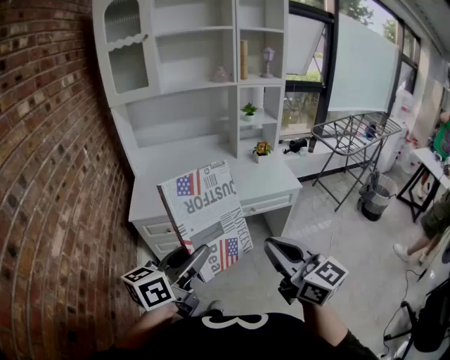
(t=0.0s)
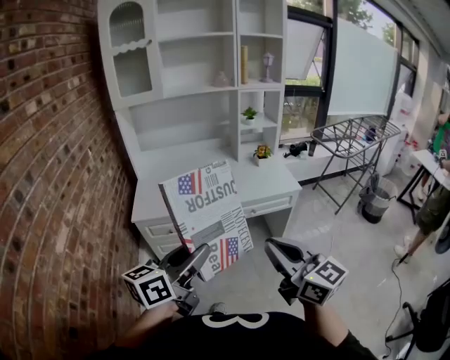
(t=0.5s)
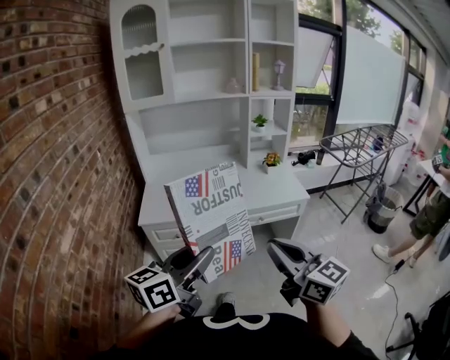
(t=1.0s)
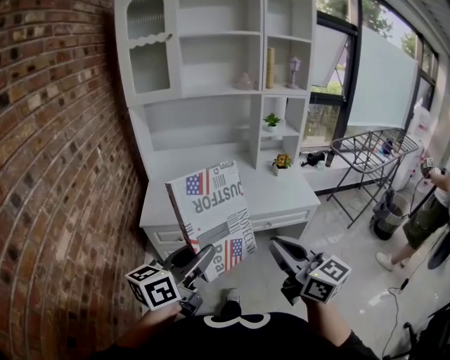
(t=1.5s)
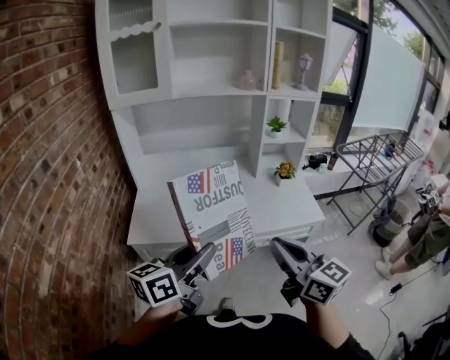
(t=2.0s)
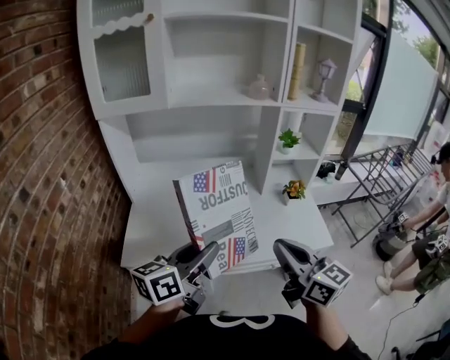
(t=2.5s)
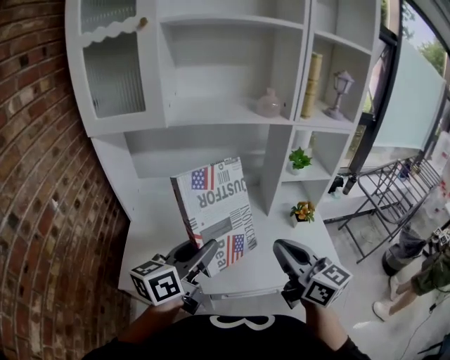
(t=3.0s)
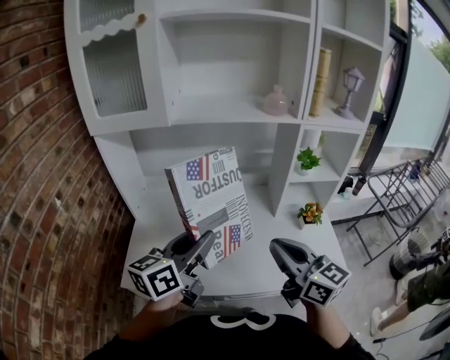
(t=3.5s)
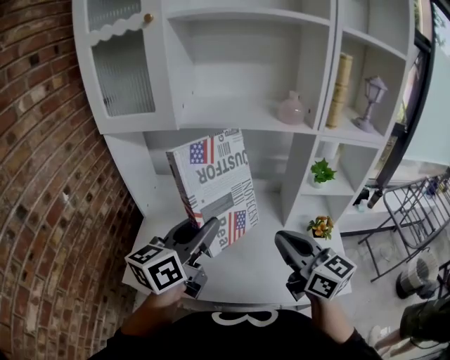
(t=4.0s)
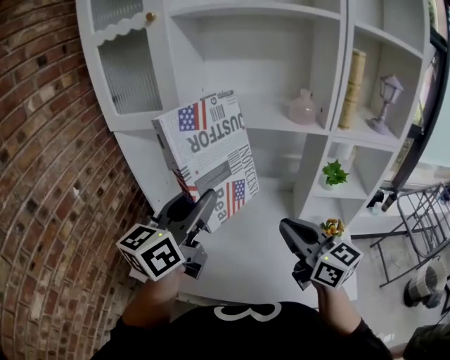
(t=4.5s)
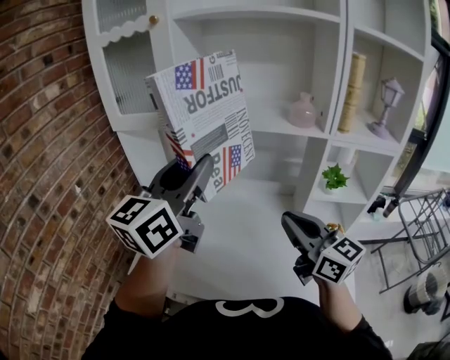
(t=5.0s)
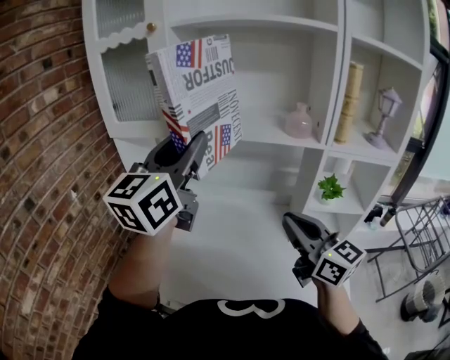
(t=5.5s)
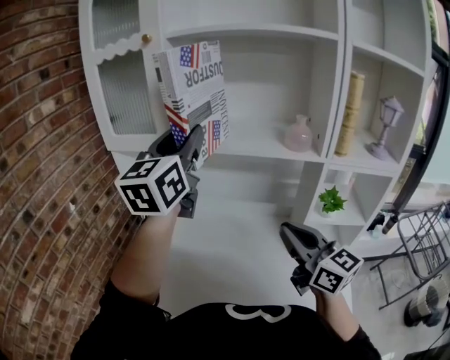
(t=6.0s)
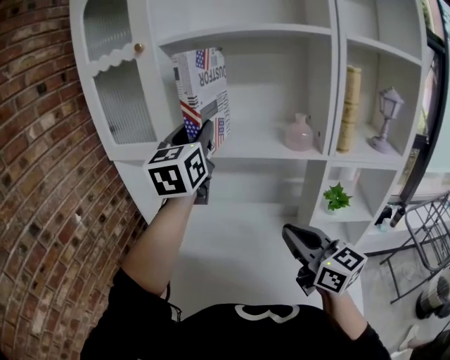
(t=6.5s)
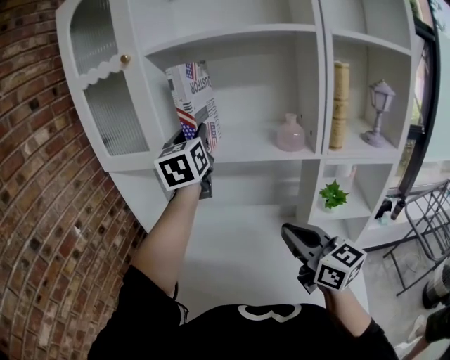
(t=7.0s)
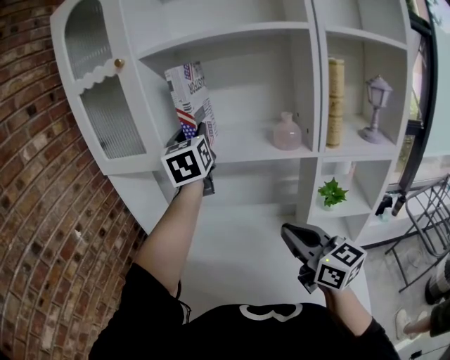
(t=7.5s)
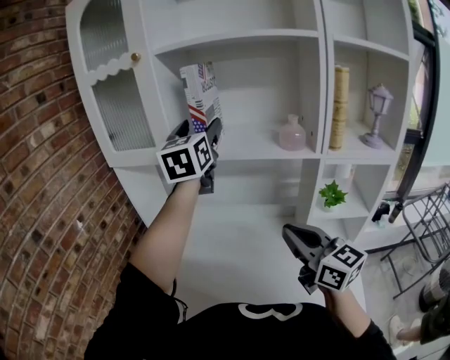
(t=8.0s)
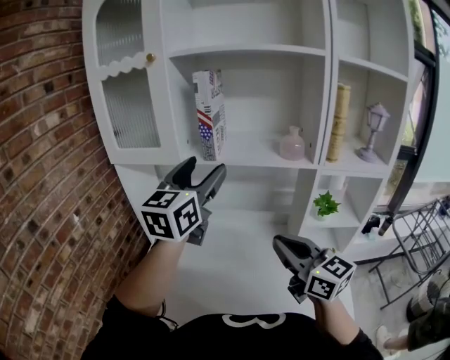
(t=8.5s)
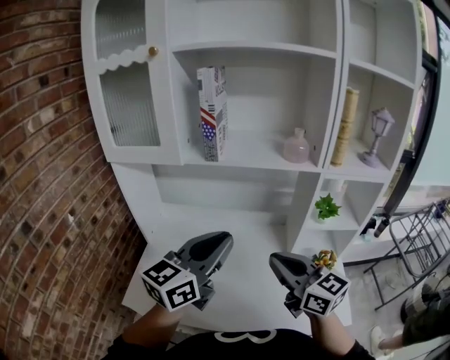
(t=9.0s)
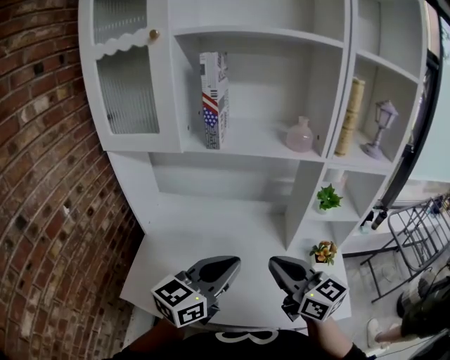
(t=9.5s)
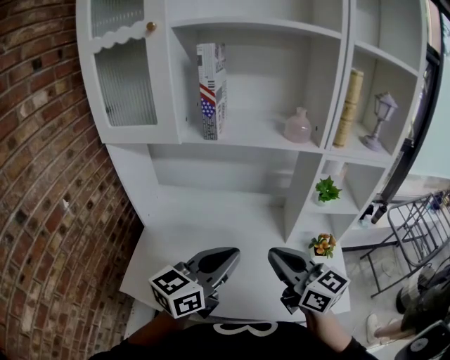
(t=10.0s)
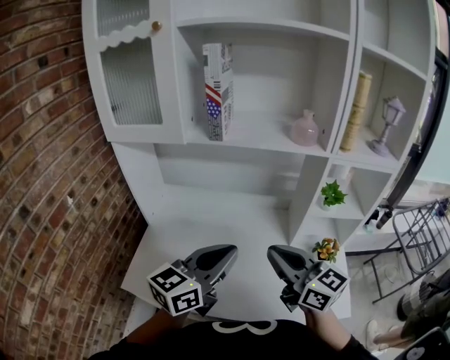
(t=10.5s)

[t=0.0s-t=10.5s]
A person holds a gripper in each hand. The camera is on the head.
t=0.0s to t=2.0s: Both grippers move forward, some 20 cm.
t=2.0s to t=4.0s: Both grippers move forward, roughly 35 cm.
t=4.0s to t=6.5s: The left gripper moves upward and forward, about 30 cm, and turns by some 40 degrees. Meanwhile the right gripper travels forward by roughly 10 cm.
t=6.5s to t=8.5s: The left gripper goes about 10 cm backward, and opens.
t=8.5s to t=10.5s: The right gripper shifts by some 5 cm. The left gripper goes about 20 cm downward and backward, swivels about 30 degrees, and closes its fingers.

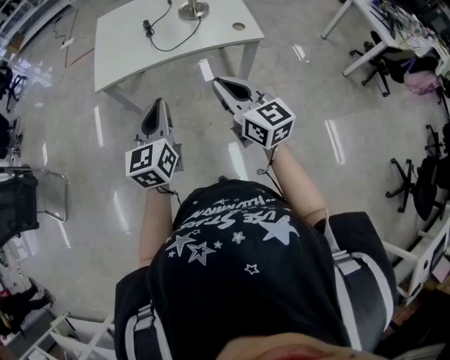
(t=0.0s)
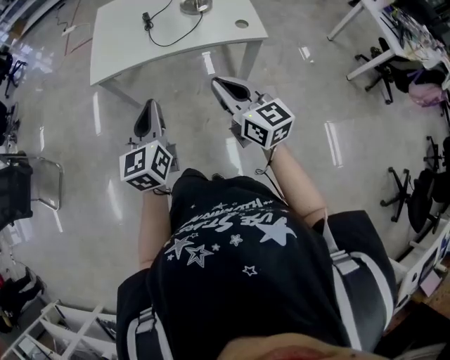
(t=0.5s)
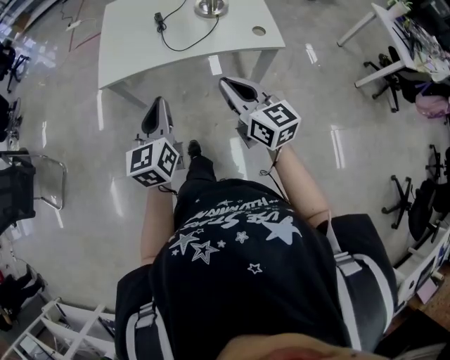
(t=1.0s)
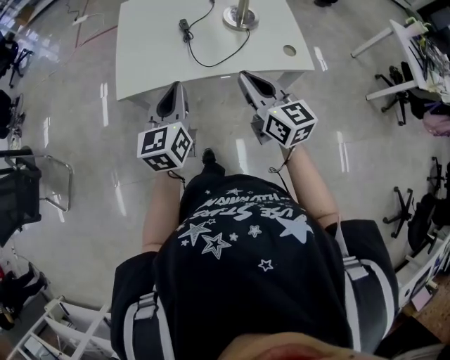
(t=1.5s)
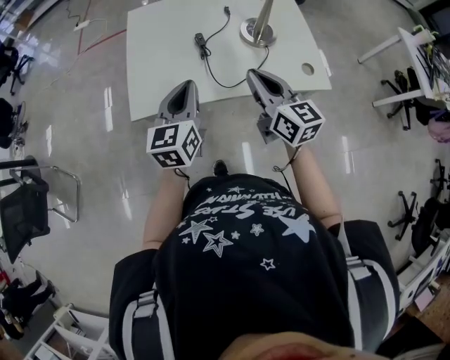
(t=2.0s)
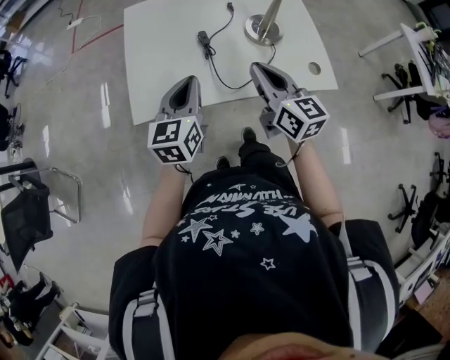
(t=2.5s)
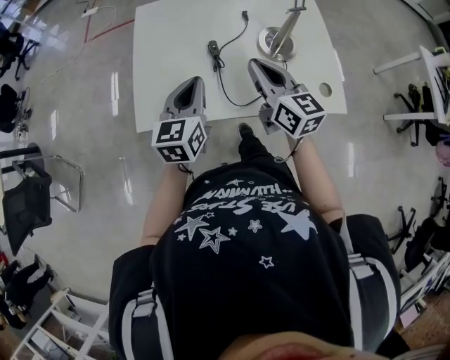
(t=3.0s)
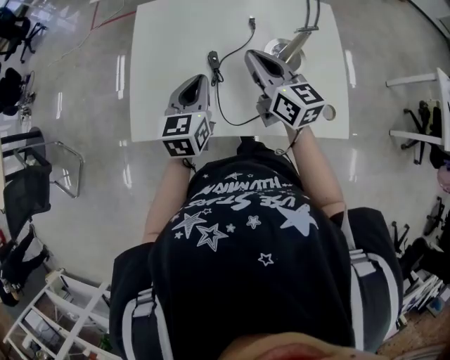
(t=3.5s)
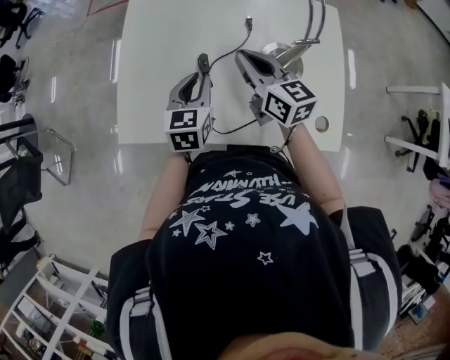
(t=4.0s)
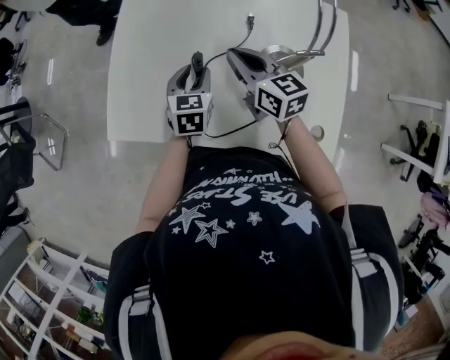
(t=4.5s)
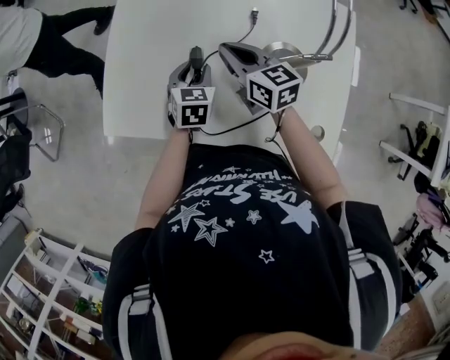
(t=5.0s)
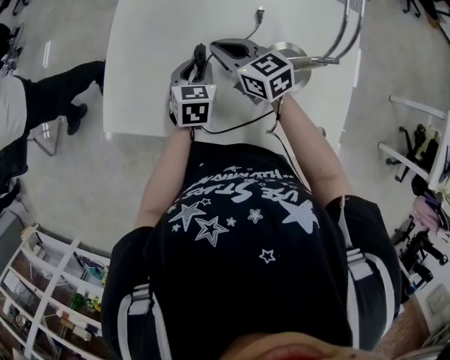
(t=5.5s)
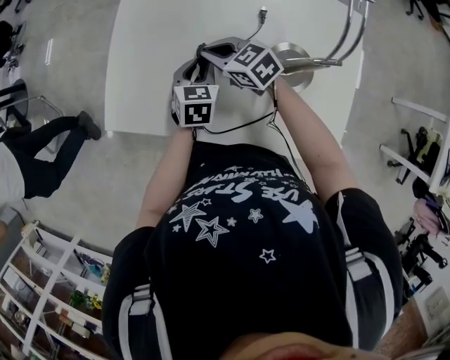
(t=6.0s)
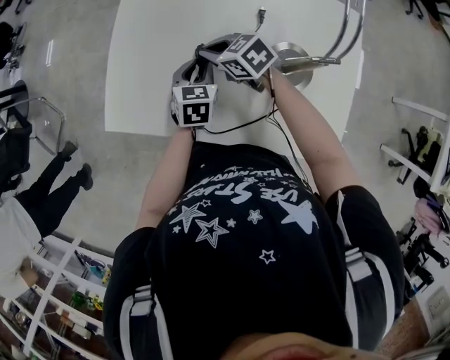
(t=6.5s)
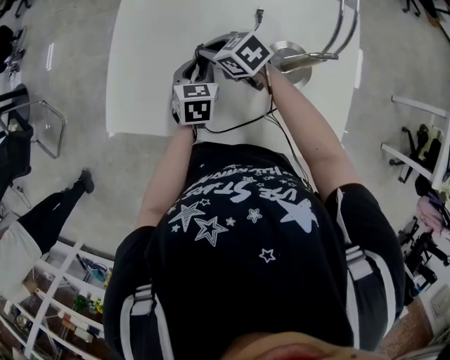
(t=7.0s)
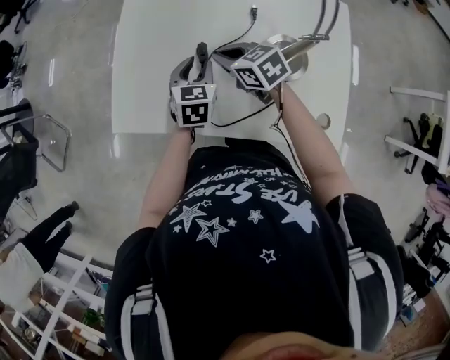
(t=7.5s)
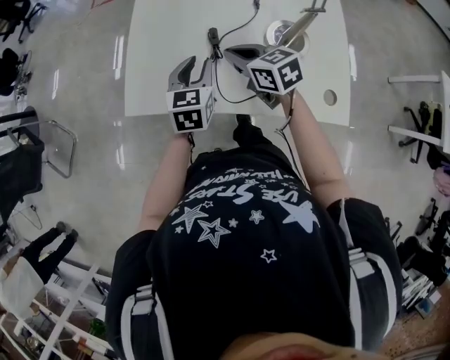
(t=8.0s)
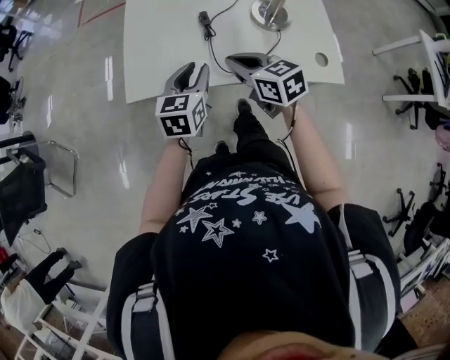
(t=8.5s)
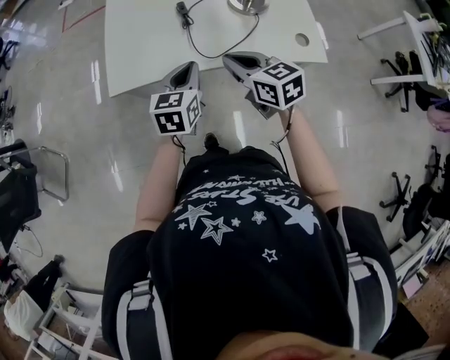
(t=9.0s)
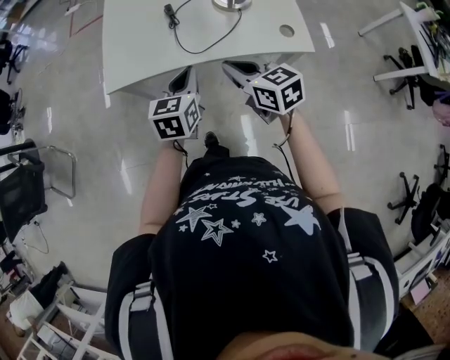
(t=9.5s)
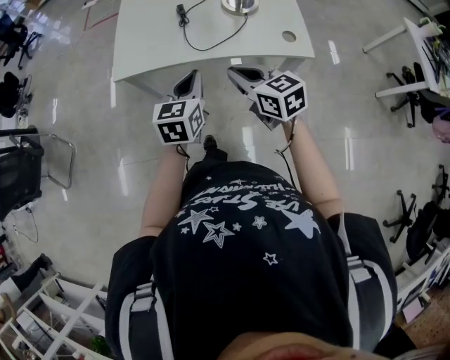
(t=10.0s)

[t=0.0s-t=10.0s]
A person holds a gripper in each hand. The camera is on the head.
t=0.0s to t=2.0s: The two grippers go approximately 30 cm forward.
t=2.0s to t=4.0s: The right gripper heads forward, covering about 25 cm. The left gripper moves forward, downward and to the right, approximately 25 cm, and turns by about 20 degrees.
t=4.0s to t=6.0s: The left gripper goes some 10 cm downward. Meanwhile the right gripper heads downward, to the left and forward, covering approximately 15 cm, and rotates roughly 40 degrees.
t=6.0s to t=8.0s: The left gripper travels upward, to the left and backward by approximately 15 cm, while the right gripper goes about 10 cm backward and upward, and swivels approximately 20 degrees.
t=8.0s to t=10.0s: The grippers both shift backward by approximately 30 cm. The left gripper closes.

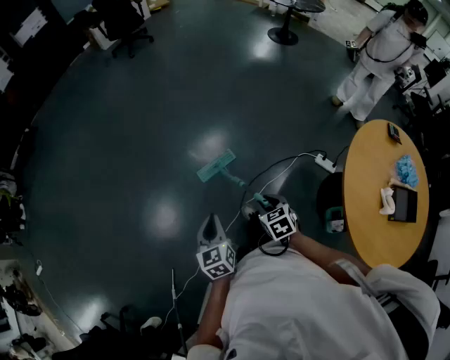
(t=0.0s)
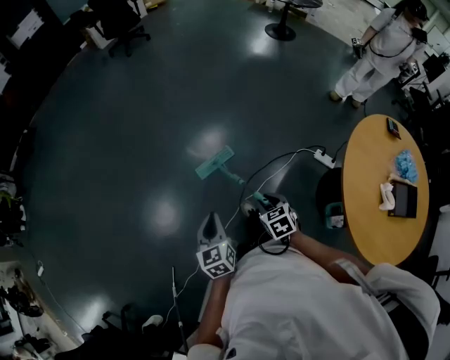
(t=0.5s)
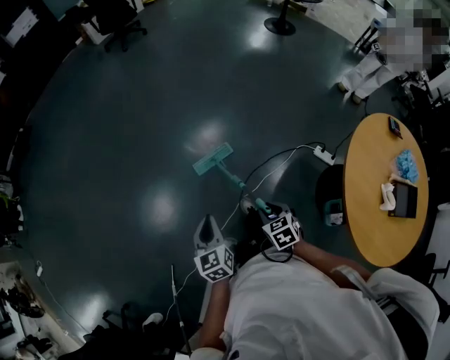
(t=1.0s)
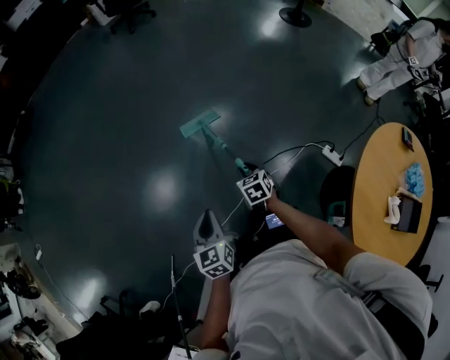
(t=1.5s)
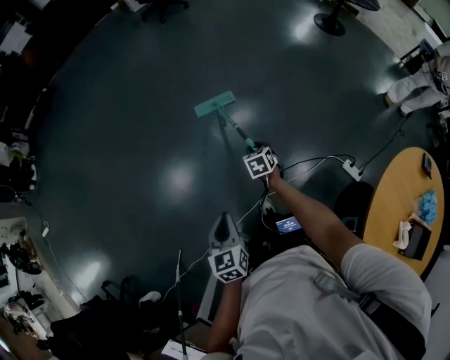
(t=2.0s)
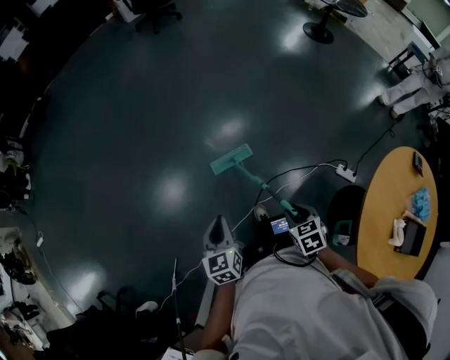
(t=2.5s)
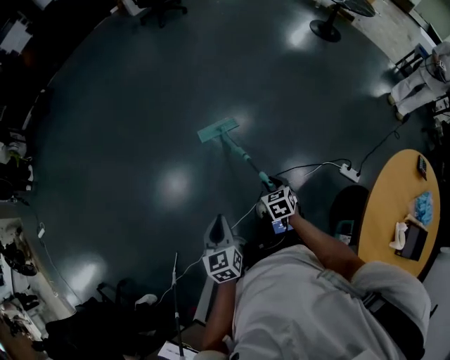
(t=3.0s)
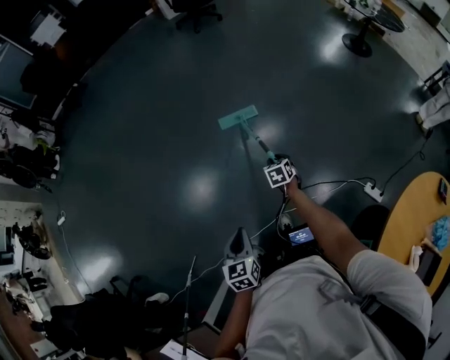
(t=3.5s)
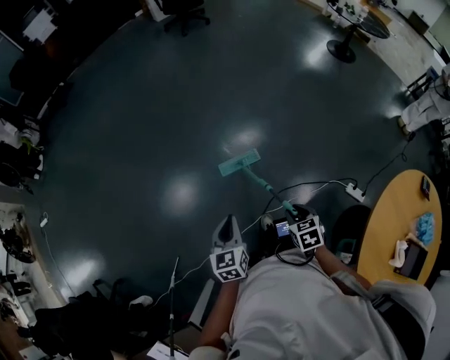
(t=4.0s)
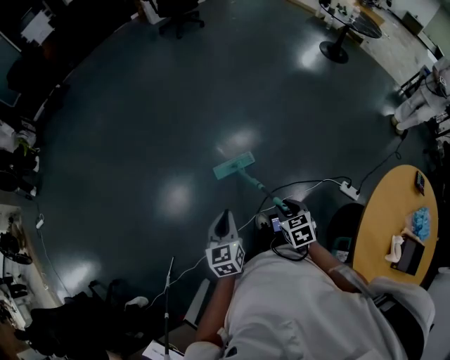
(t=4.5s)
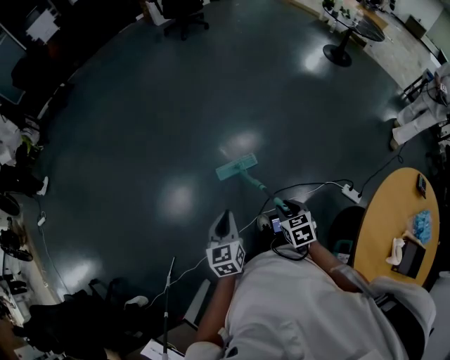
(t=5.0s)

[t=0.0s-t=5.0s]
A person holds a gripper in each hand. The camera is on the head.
t=0.0s to t=2.5s: The left gripper heads forward, covering about 10 cm. The right gripper goes forward and returns, about 30 cm each way.
t=2.5s to t=5.0s: The right gripper goes forward and returns, some 30 cm each way.

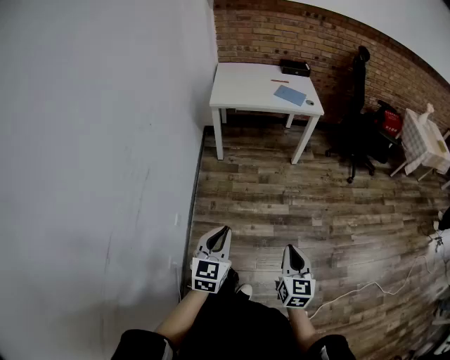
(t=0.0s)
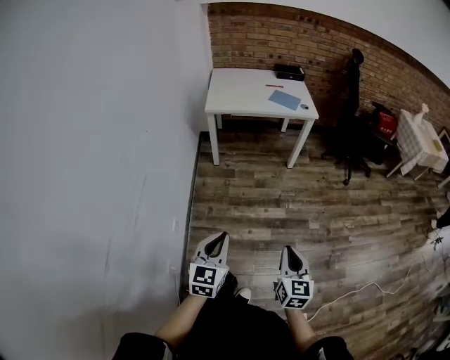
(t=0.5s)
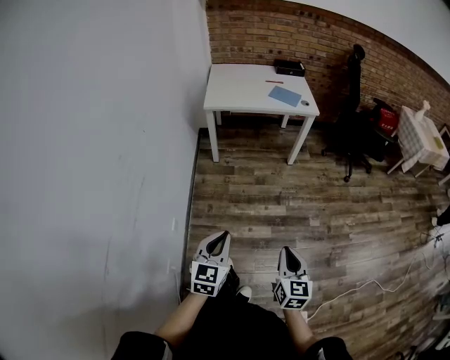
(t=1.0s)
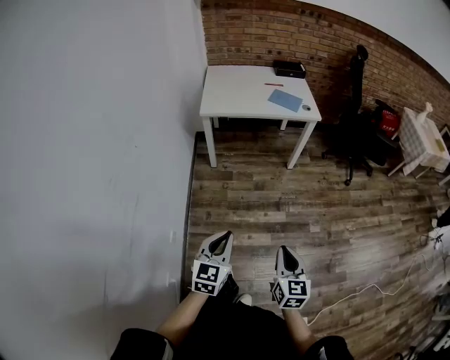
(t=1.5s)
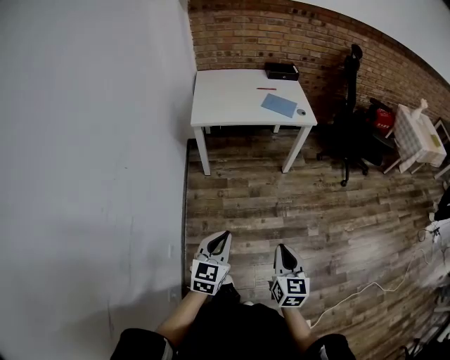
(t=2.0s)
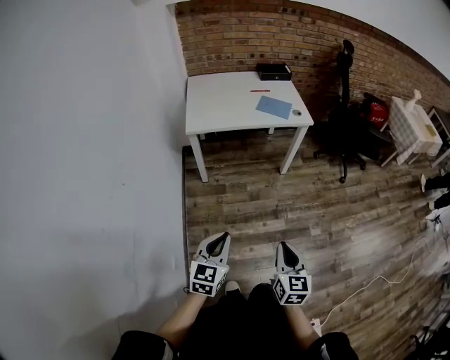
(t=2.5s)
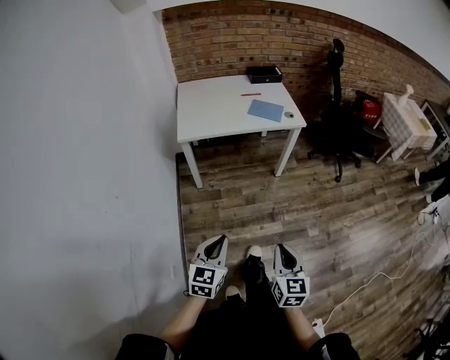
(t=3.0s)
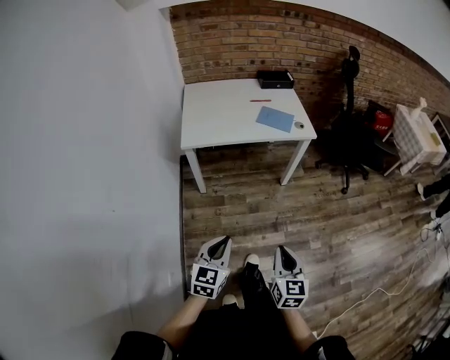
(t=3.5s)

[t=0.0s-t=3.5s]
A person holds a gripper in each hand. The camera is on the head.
t=0.0s to t=2.0s: Both grippers travel together forward, roughly 20 cm.
t=2.0s to t=3.5s: The two grippers go roughly 15 cm forward.
